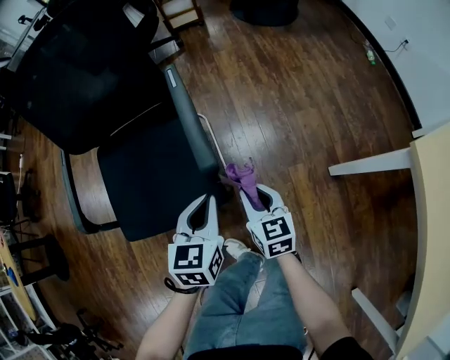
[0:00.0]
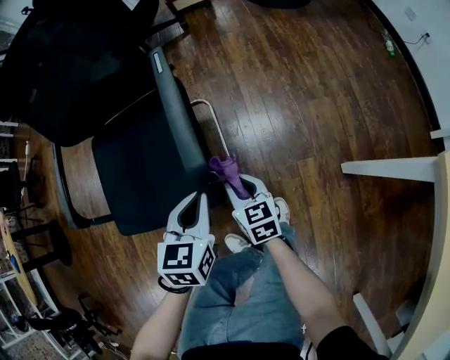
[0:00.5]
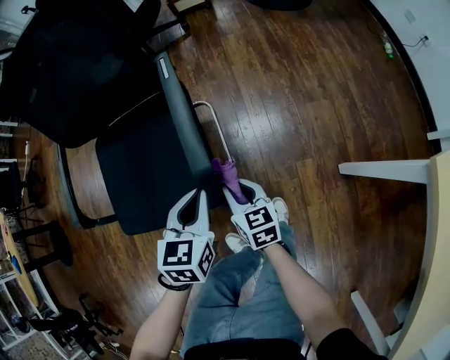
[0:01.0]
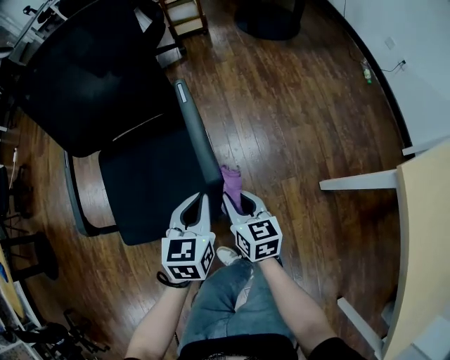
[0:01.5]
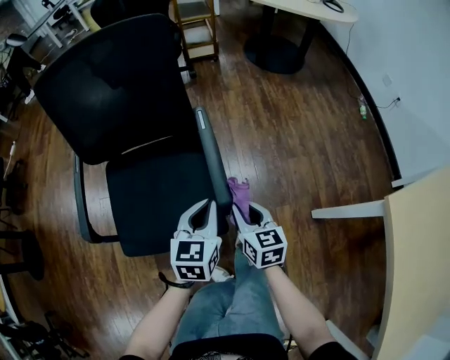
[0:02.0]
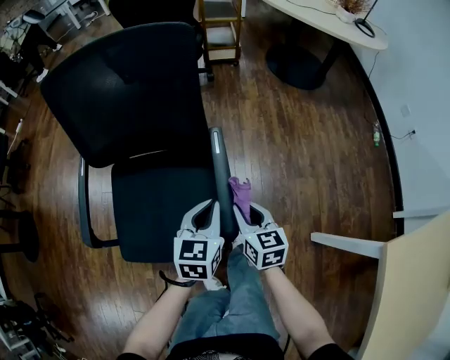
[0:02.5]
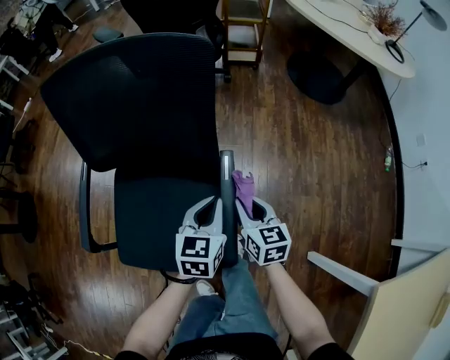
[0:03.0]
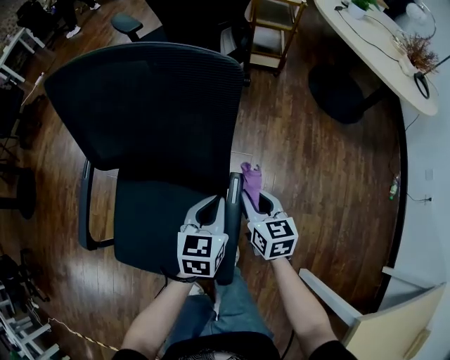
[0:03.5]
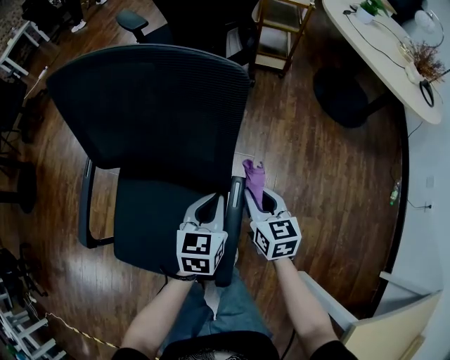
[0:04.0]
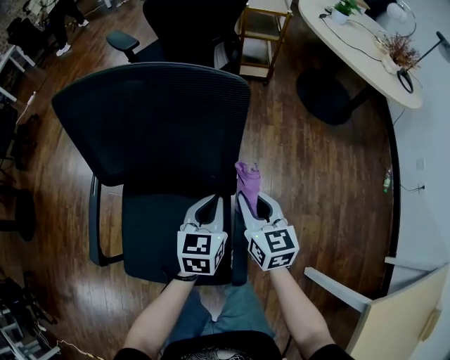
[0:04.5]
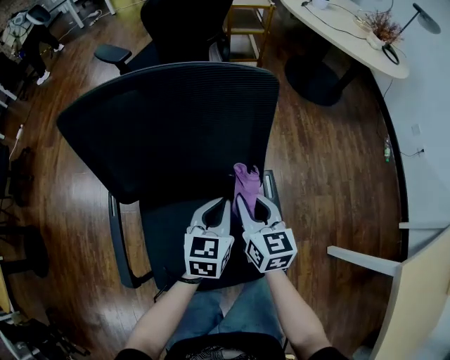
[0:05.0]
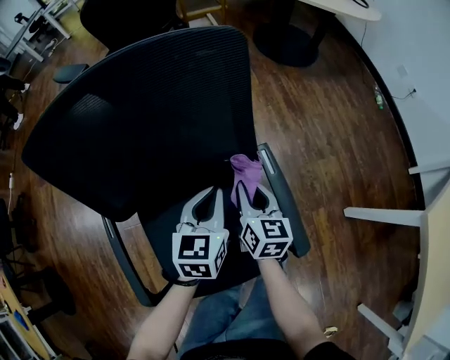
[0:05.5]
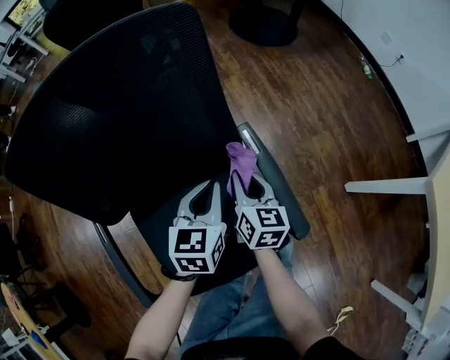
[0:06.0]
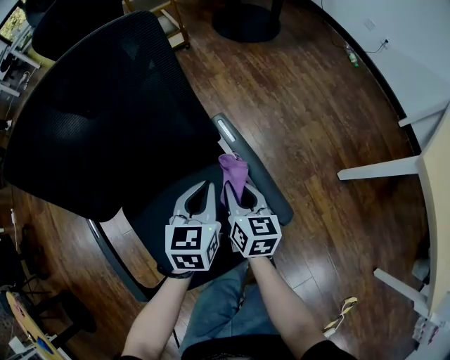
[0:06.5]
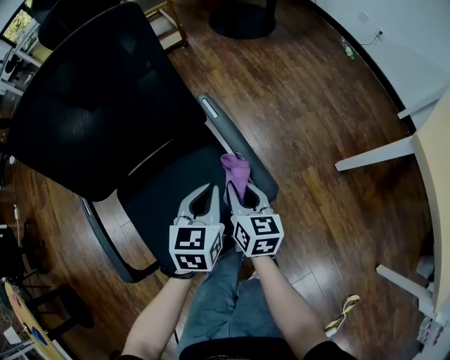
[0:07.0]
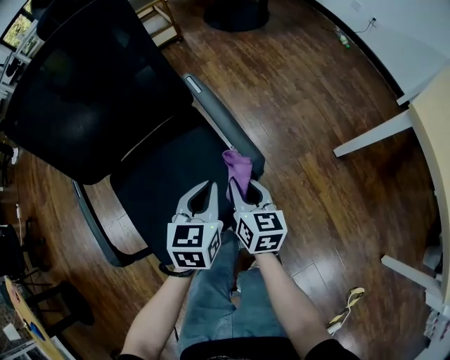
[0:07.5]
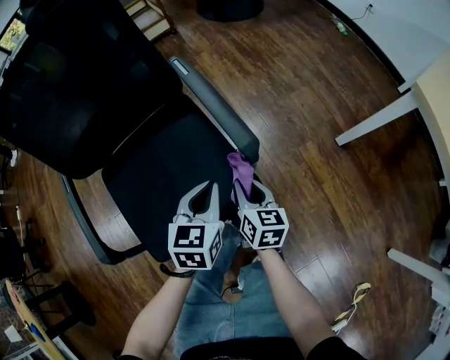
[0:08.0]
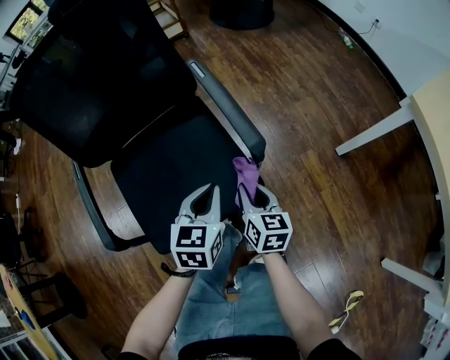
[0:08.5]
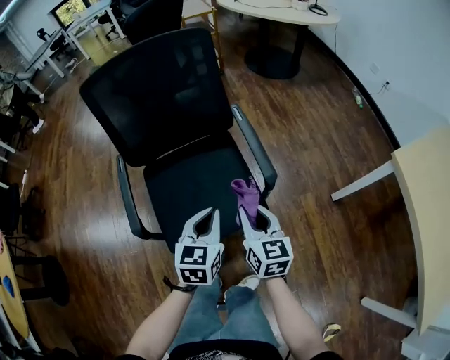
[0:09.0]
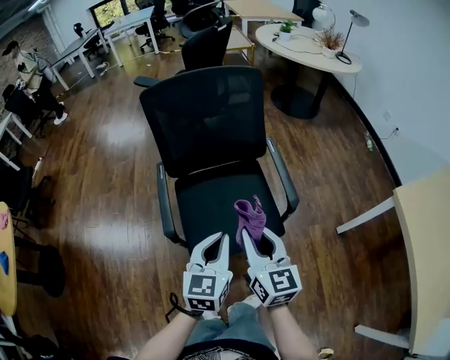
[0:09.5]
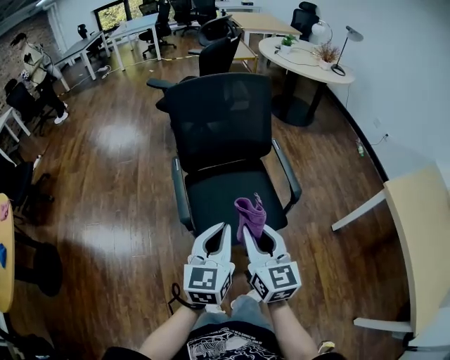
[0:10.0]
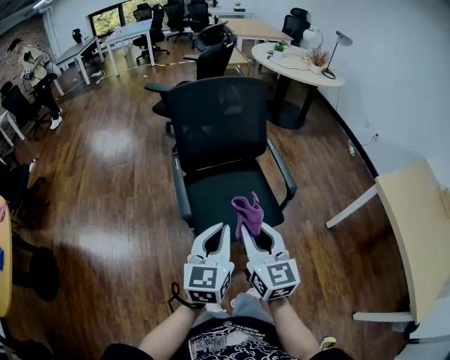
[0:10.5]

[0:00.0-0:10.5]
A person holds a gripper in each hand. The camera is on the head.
0:00.0 to 0:02.0: The left gripper moves forward and upward, approximately 10 cm. Meanwhile the right gripper travels upward and forward by approximately 10 cm.
0:02.0 to 0:04.0: Both grippers move forward, roughly 30 cm. The left gripper changes its angle by some 20 degrees. Meanwhile the right gripper turns by some 20 degrees.
0:04.0 to 0:06.5: The left gripper ends up some 10 cm from where it was, and swivels some 40 degrees. Meanwhile the right gripper travels upward and back again, roughly 5 cm each way, and changes its angle by approximately 50 degrees.
0:06.5 to 0:08.5: The grippers both shift backward and to the right by about 20 cm.
0:08.5 to 0:10.5: Both grippers move upward, to the left and backward, some 50 cm. The right gripper changes its angle by roughly 40 degrees. The left gripper swivels some 30 degrees.

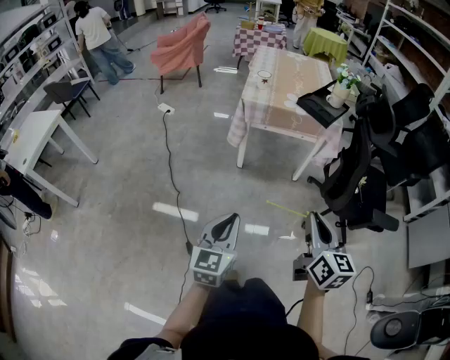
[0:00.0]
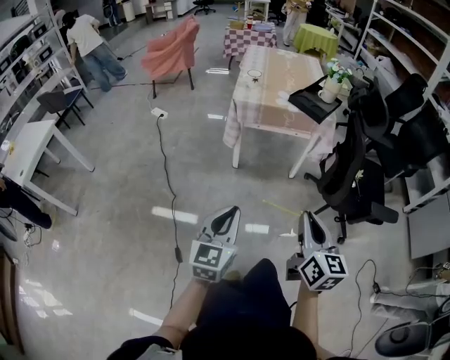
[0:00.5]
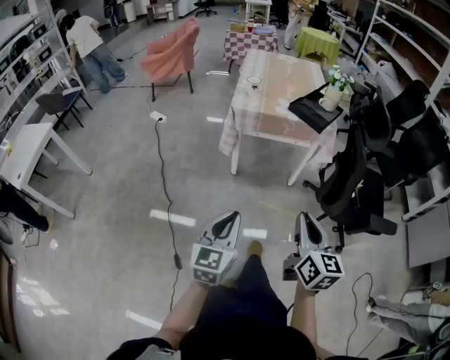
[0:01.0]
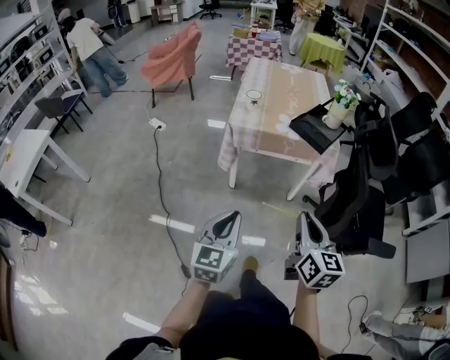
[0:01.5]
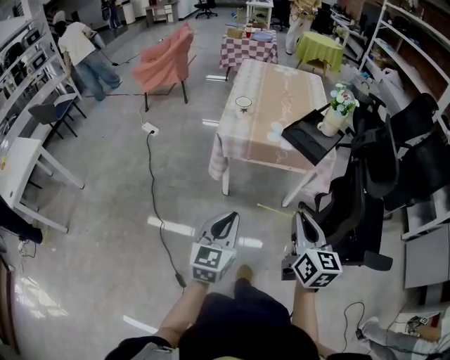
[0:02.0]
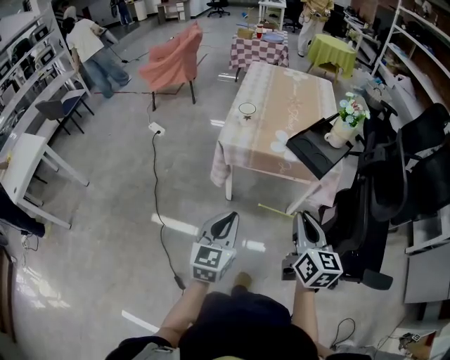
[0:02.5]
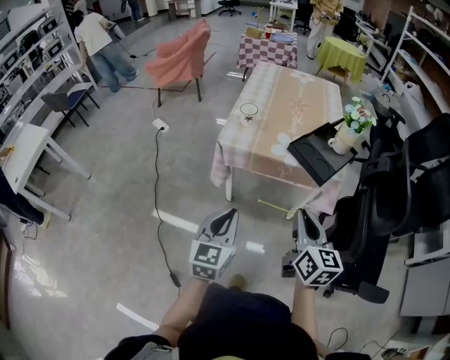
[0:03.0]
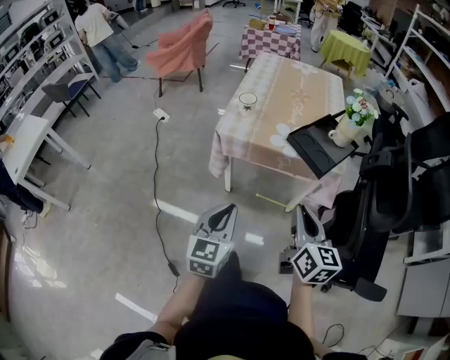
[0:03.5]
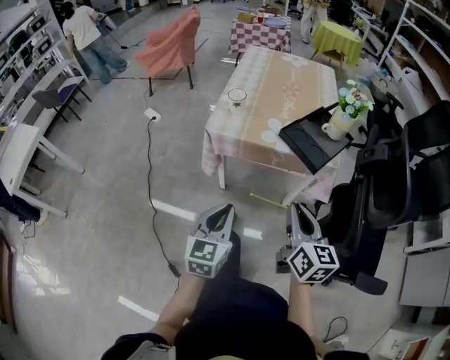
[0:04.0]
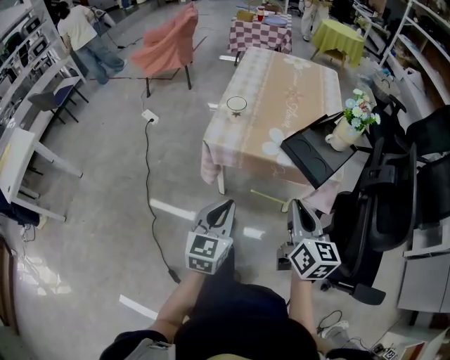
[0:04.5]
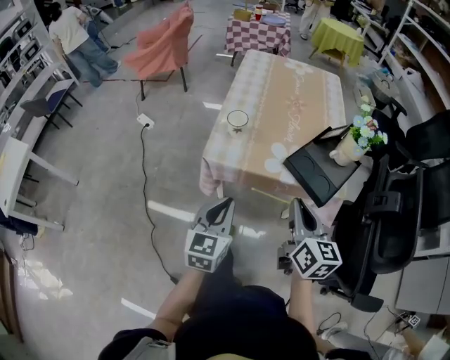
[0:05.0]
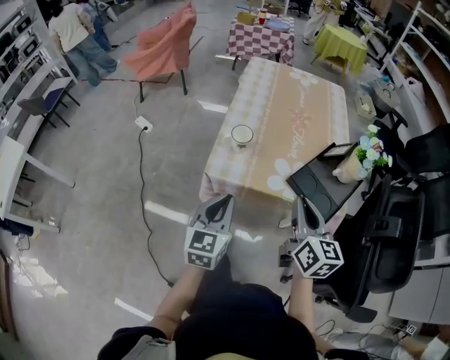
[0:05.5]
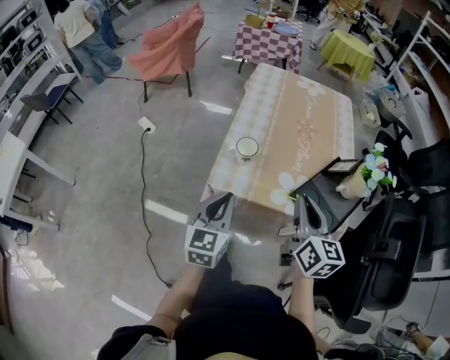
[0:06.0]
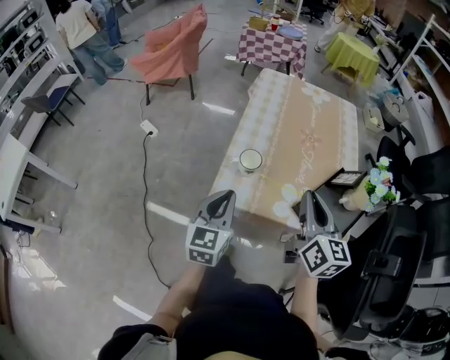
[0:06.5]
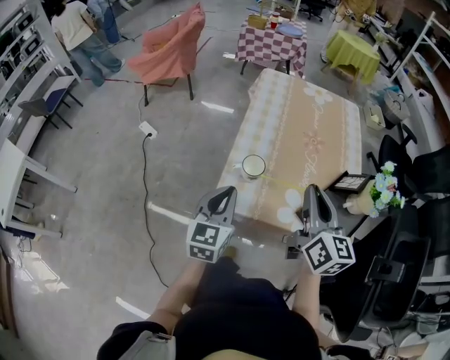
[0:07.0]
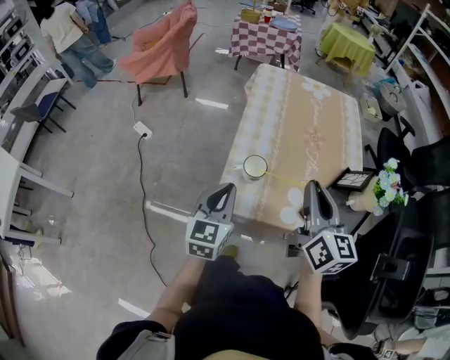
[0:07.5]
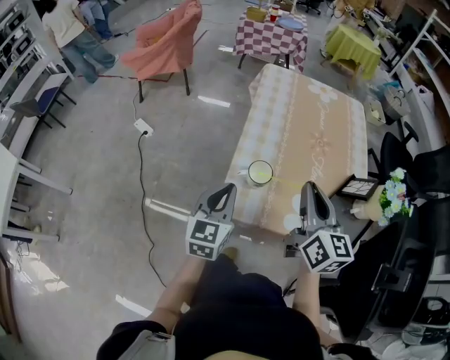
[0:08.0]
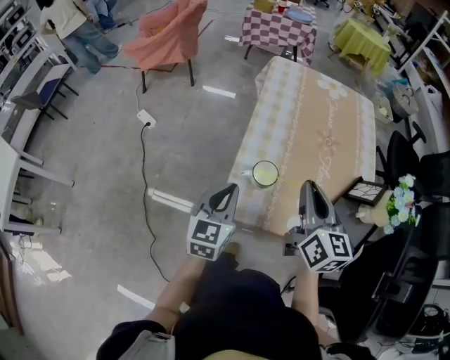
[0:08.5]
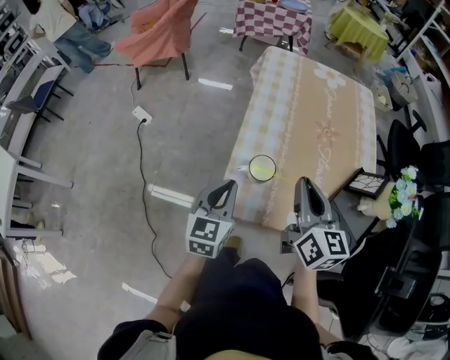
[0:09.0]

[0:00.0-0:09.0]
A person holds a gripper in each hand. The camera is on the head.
0:00.0 to 0:02.0: The two grippers go approximately 25 cm forward.
0:02.0 to 0:04.5: The two grippers go approximately 15 cm forward.
0:04.5 to 0:07.0: Both grippers move forward, about 25 cm.
0:07.0 to 0:09.0: The grippers both shift downward and forward by about 10 cm.

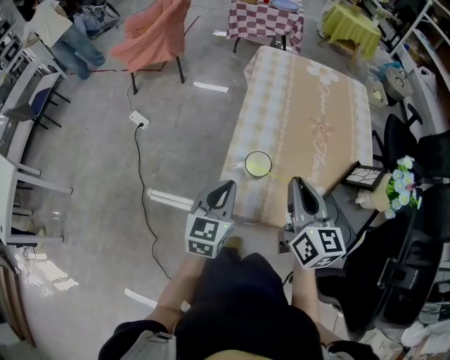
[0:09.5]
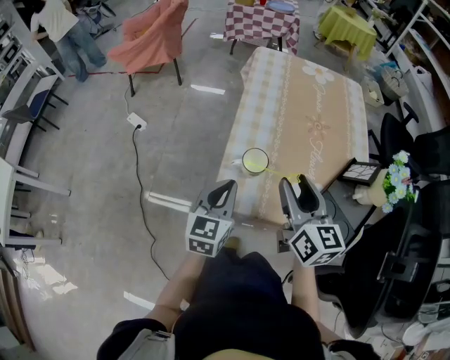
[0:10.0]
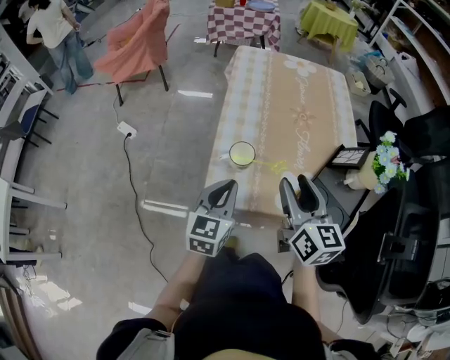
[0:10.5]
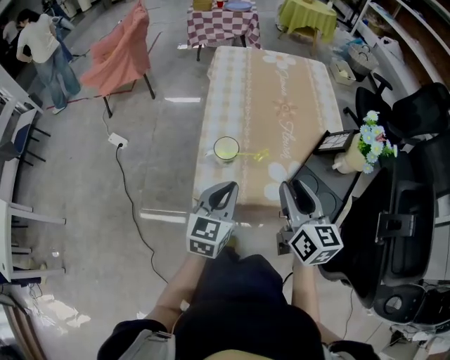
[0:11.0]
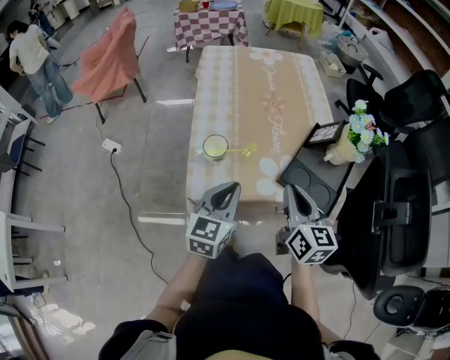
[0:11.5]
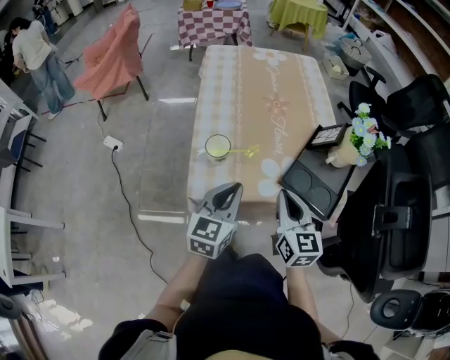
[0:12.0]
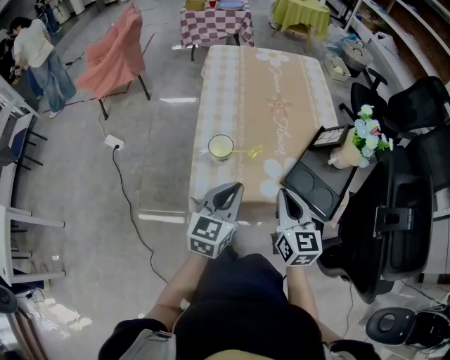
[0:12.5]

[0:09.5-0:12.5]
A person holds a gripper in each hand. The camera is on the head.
0:09.5 to 0:11.0: The left gripper moves to the right, roughly 10 cm; the right gripper goes about 10 cm backward and to the right, and opens up.
0:11.0 to 0:12.5: The right gripper moves downward, about 5 cm, and closes its fingers.

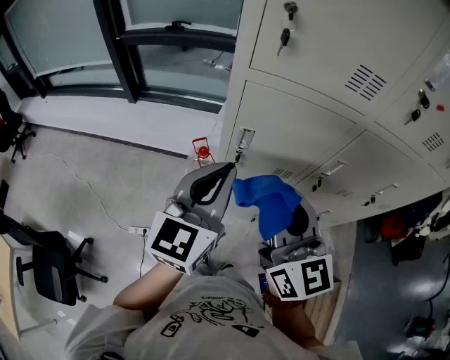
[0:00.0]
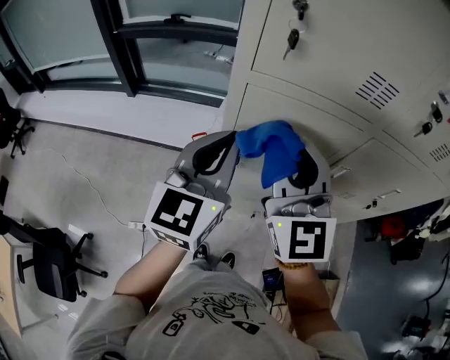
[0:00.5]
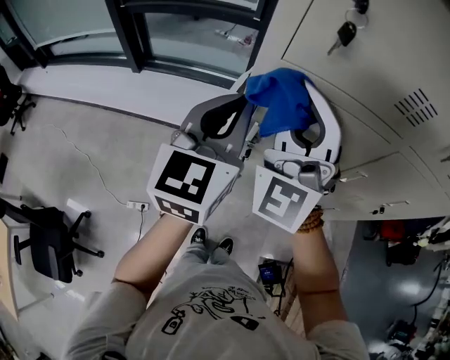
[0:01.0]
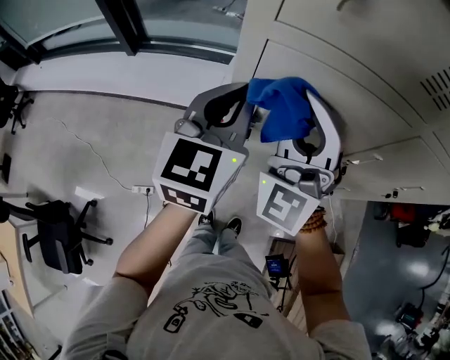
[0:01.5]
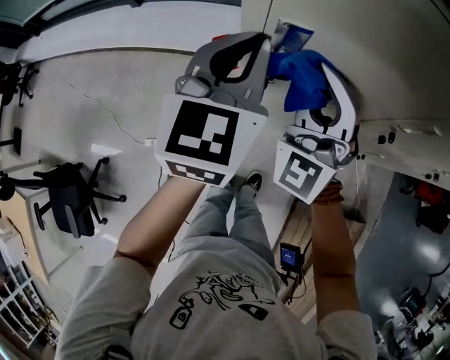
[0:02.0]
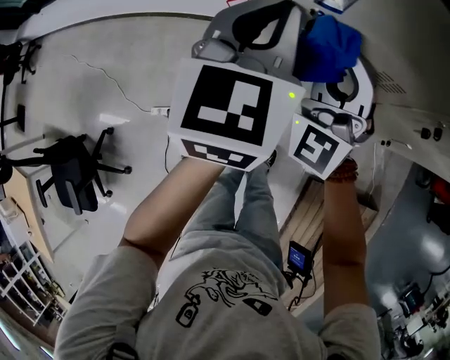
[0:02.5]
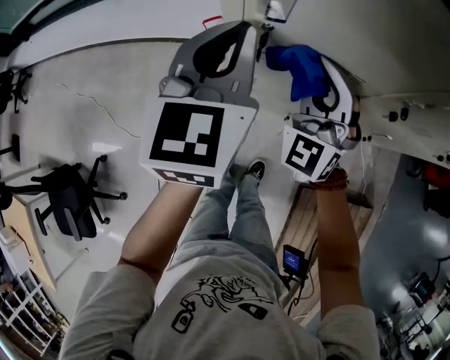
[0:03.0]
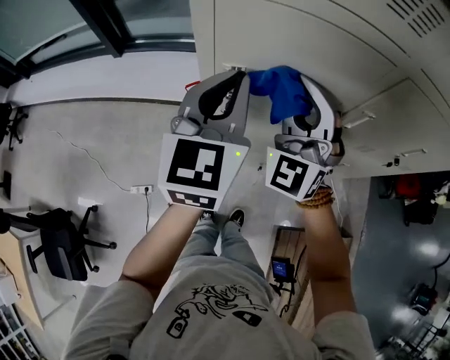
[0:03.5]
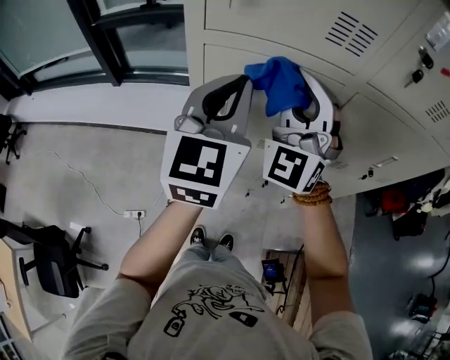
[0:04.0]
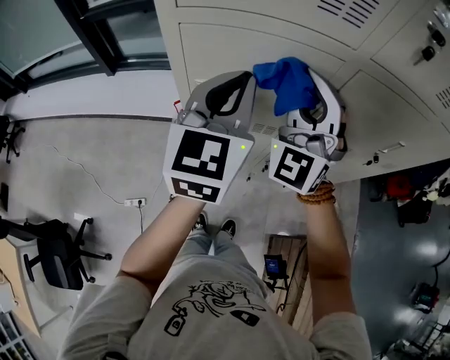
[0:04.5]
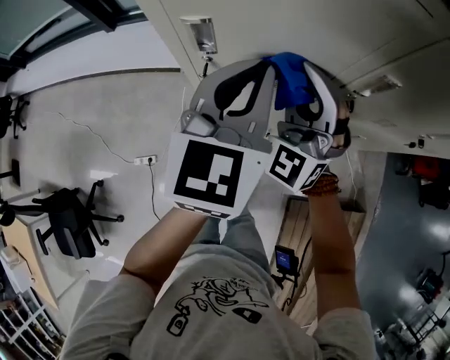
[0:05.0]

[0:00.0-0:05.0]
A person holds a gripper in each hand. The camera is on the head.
0:00.0 to 0:02.5: Both grippers travel together downward and forward, approximately 25 cm. The right gripper rolls counterclockwise, seen from behind, by about 50 degrees.
0:02.5 to 0:05.0: Both grippers travel together to the right, about 15 cm. The left gripper travels upward and back again, about 25 cm each way. Meanwhile the right gripper reaches roughly 30 cm upward, then returns.
